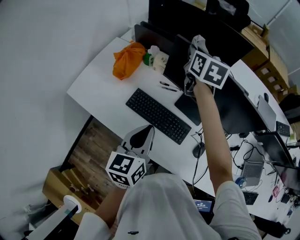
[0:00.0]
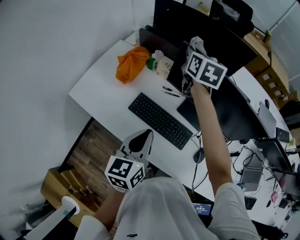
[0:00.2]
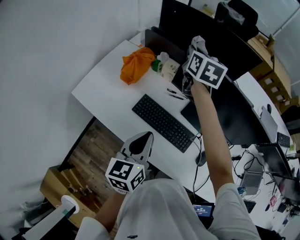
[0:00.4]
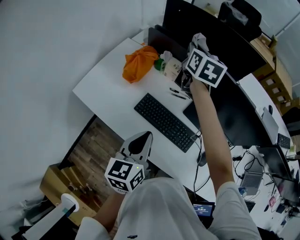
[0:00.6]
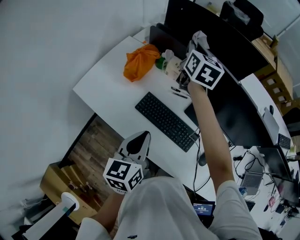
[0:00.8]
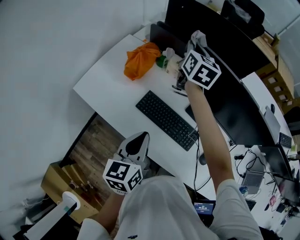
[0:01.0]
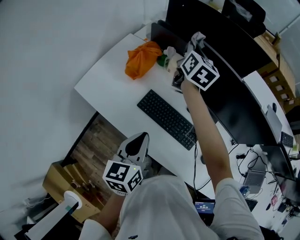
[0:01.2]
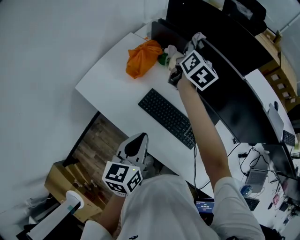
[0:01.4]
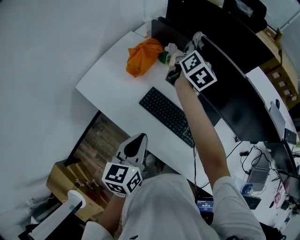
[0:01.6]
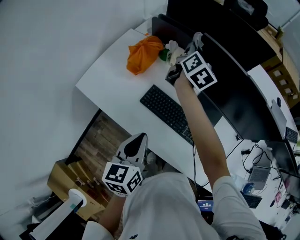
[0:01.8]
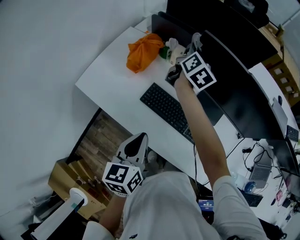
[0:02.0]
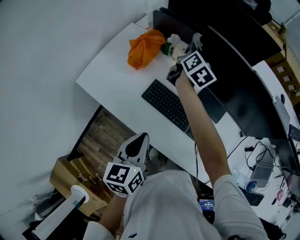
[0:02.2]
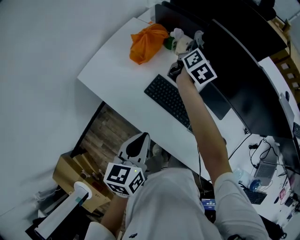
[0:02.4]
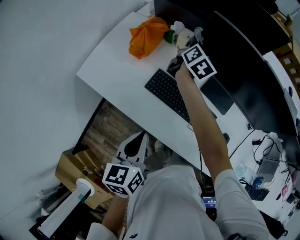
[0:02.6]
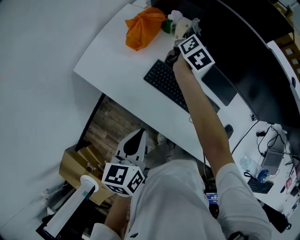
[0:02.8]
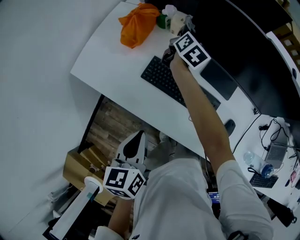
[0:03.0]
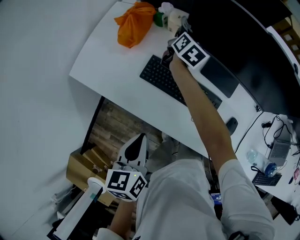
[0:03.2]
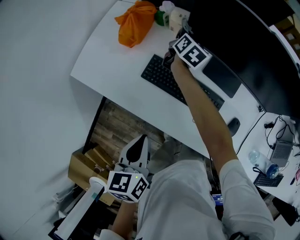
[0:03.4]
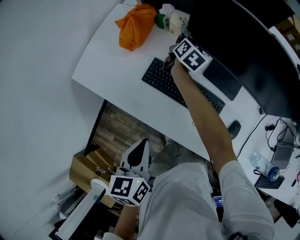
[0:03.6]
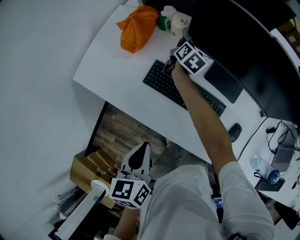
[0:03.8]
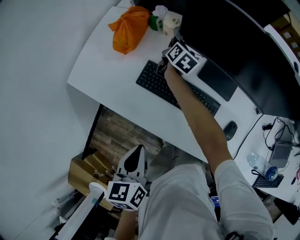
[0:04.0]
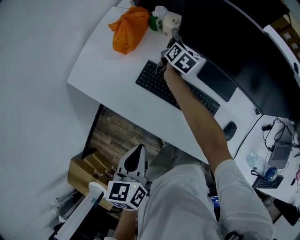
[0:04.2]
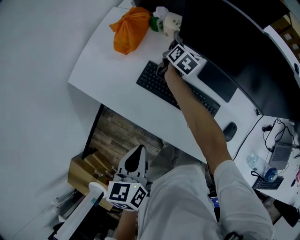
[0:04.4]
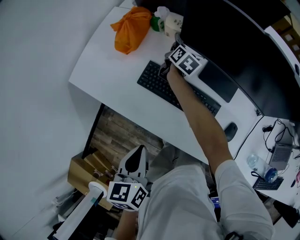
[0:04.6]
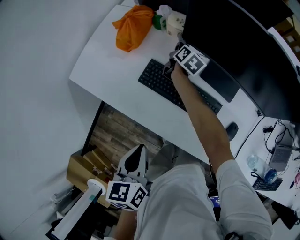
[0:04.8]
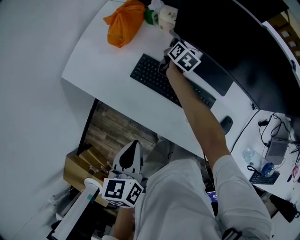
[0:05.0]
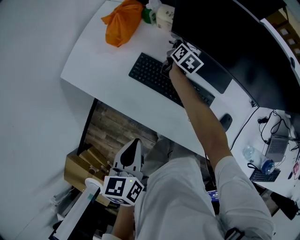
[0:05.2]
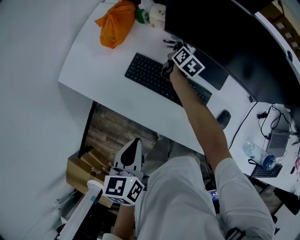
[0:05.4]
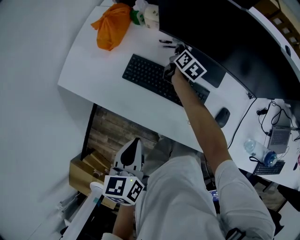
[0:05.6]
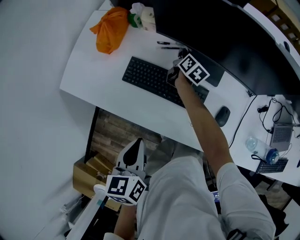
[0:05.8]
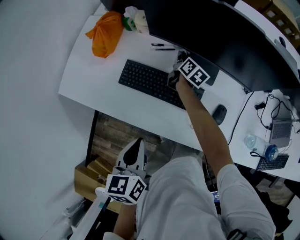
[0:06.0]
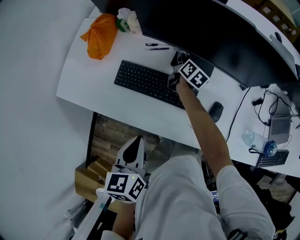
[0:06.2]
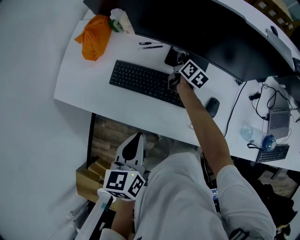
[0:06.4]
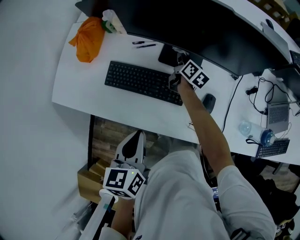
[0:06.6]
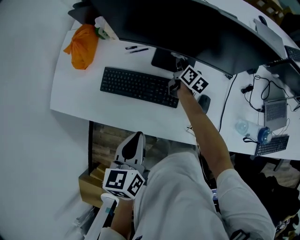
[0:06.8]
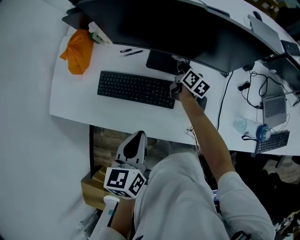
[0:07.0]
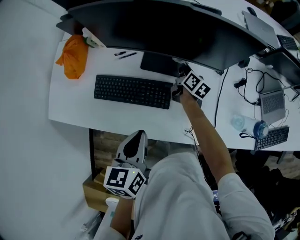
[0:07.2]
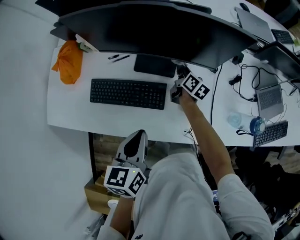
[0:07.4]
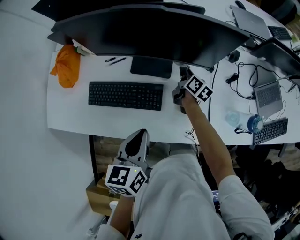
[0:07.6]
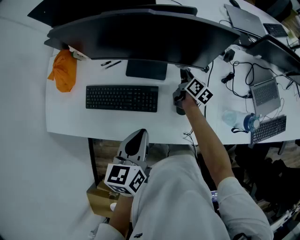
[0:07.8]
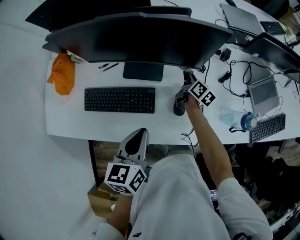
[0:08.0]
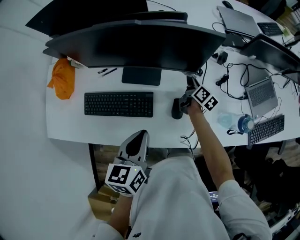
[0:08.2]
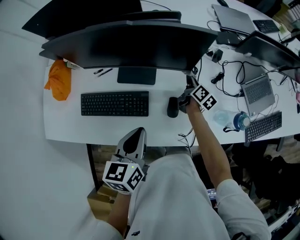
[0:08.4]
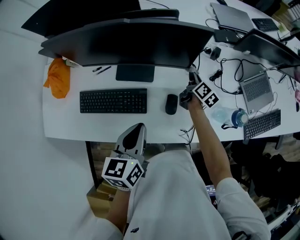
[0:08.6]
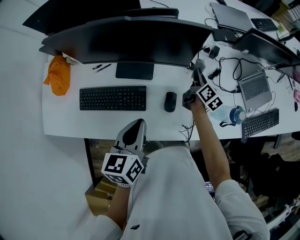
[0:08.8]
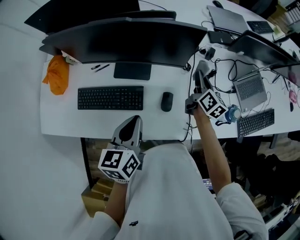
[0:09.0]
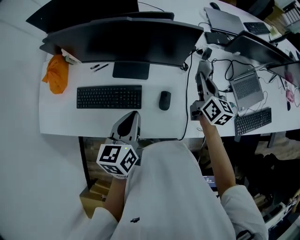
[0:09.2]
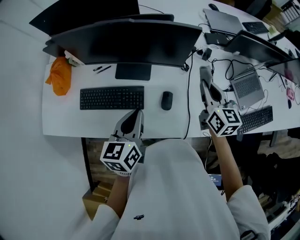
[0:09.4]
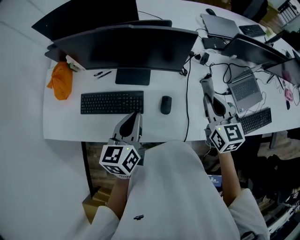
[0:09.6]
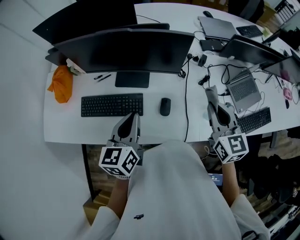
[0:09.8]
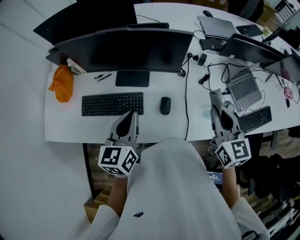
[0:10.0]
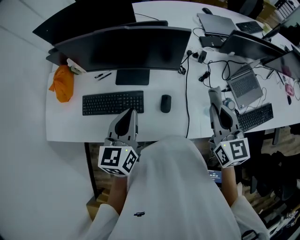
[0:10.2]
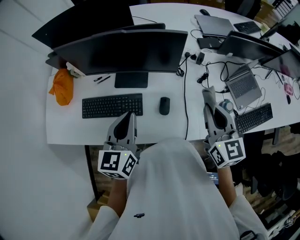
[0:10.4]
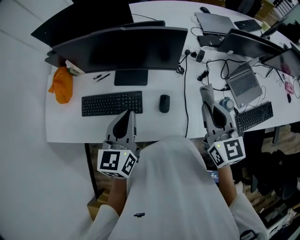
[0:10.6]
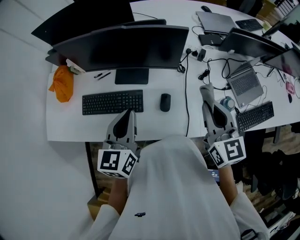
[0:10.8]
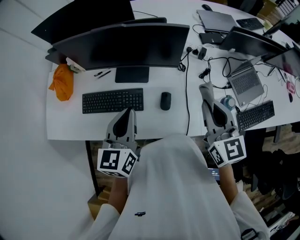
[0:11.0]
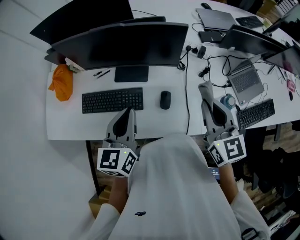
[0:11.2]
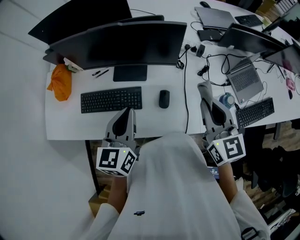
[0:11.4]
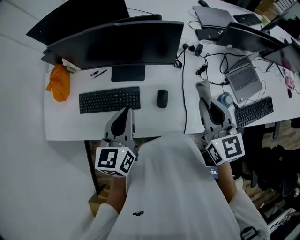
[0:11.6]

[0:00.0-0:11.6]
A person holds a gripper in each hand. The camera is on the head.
0:00.0 to 0:01.4: Both grippers travel together to the left, approximately 10 cm. The right gripper changes its angle by roughly 20 degrees.
0:01.4 to 0:02.8: The left gripper shifts by roughly 5 cm. Meanwhile the right gripper travels downward by roughly 15 cm.
0:02.8 to 0:04.4: The right gripper moves downward, approximately 15 cm.
0:04.4 to 0:05.8: The right gripper moves to the right and backward, some 15 cm.
0:05.8 to 0:07.2: The right gripper is displaced to the right by approximately 20 cm; the left gripper moves to the right and forward, some 15 cm.
0:07.2 to 0:08.8: The left gripper heads to the right, covering about 10 cm. Meanwhile the right gripper is displaced to the right by roughly 25 cm.
0:08.8 to 0:10.2: The left gripper goes roughly 5 cm upward. The right gripper is displaced upward and backward by roughly 30 cm, and rotates around the line of its fingers by approximately 50 degrees, counterclockwise from behind.
0:10.2 to 0:11.6: There are only small adjustments of the grippers.

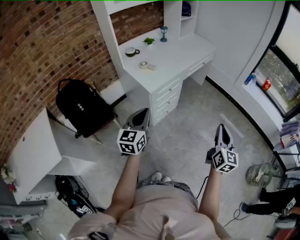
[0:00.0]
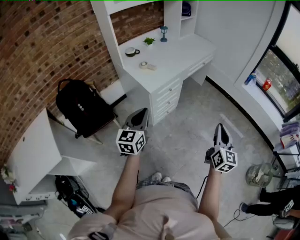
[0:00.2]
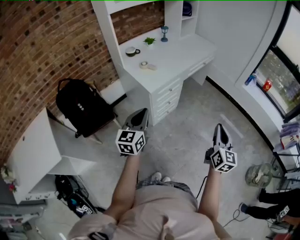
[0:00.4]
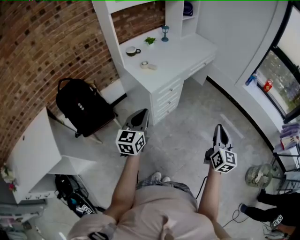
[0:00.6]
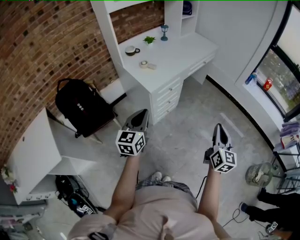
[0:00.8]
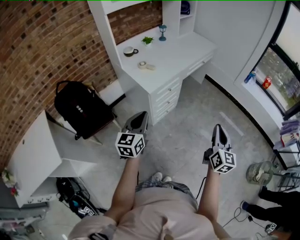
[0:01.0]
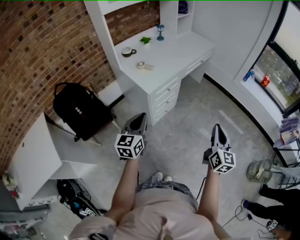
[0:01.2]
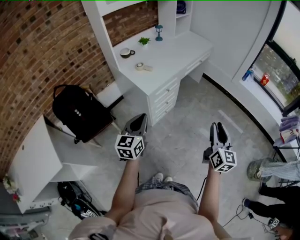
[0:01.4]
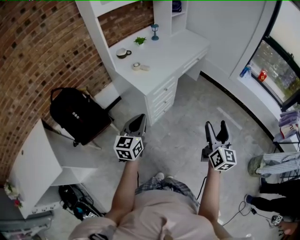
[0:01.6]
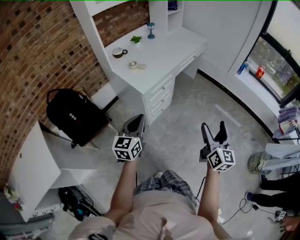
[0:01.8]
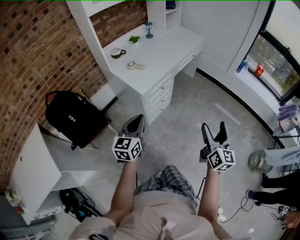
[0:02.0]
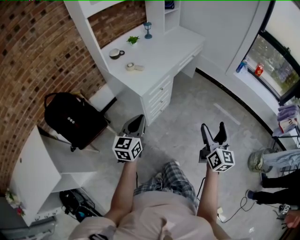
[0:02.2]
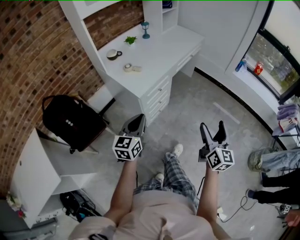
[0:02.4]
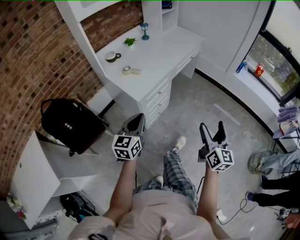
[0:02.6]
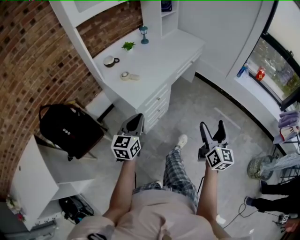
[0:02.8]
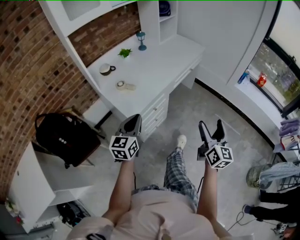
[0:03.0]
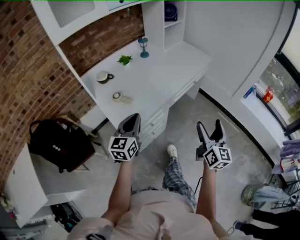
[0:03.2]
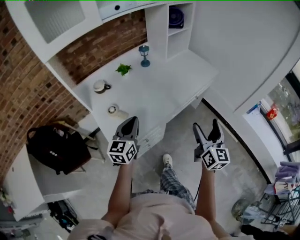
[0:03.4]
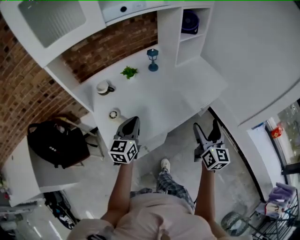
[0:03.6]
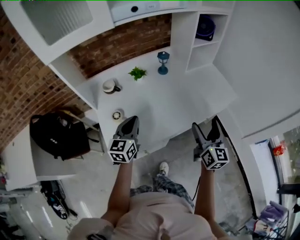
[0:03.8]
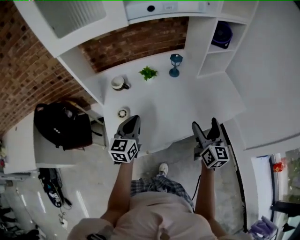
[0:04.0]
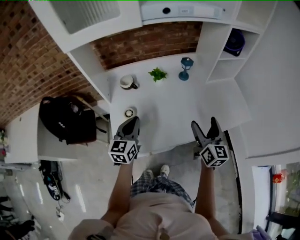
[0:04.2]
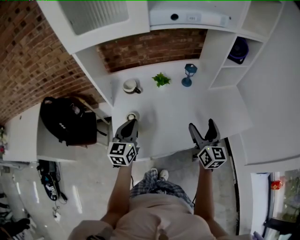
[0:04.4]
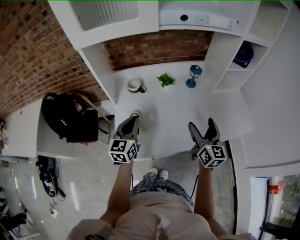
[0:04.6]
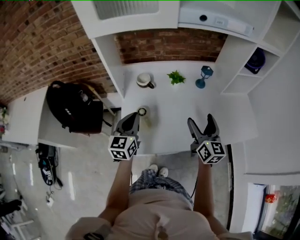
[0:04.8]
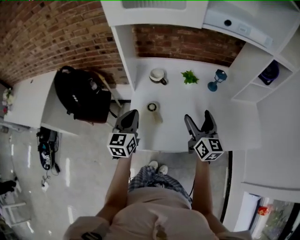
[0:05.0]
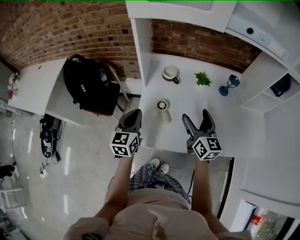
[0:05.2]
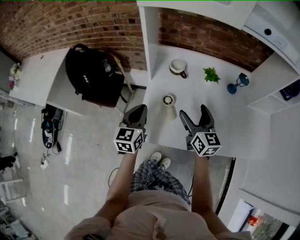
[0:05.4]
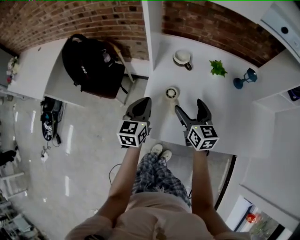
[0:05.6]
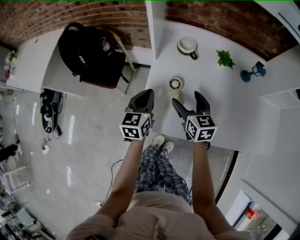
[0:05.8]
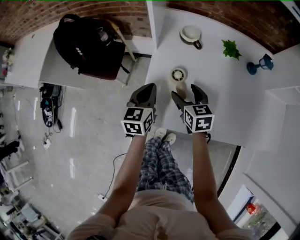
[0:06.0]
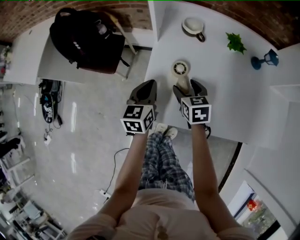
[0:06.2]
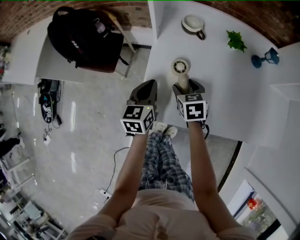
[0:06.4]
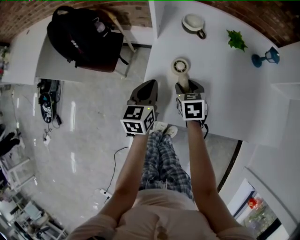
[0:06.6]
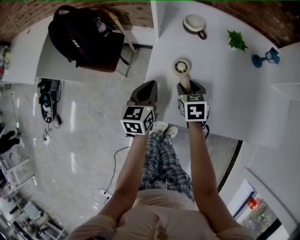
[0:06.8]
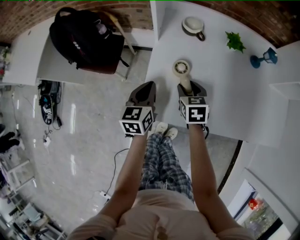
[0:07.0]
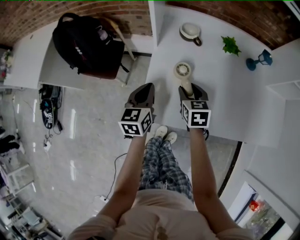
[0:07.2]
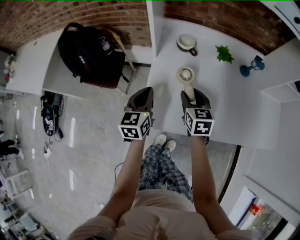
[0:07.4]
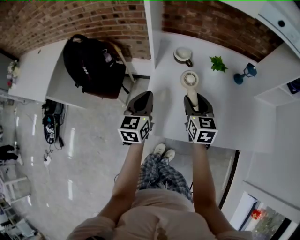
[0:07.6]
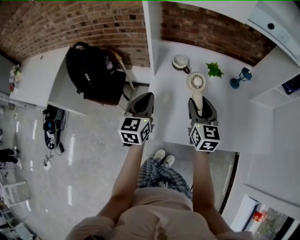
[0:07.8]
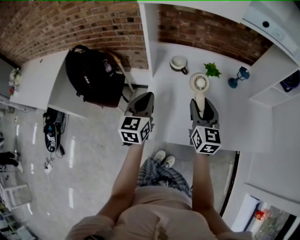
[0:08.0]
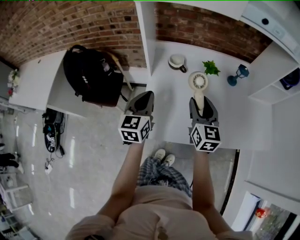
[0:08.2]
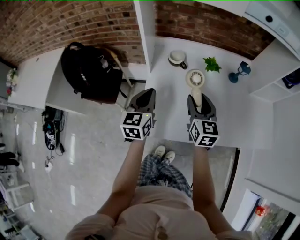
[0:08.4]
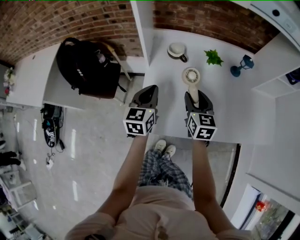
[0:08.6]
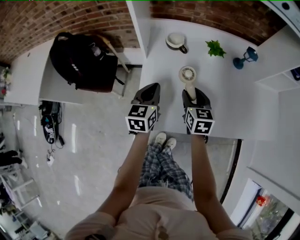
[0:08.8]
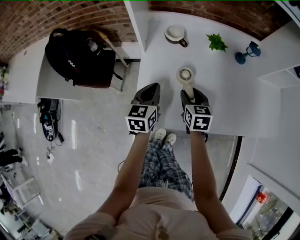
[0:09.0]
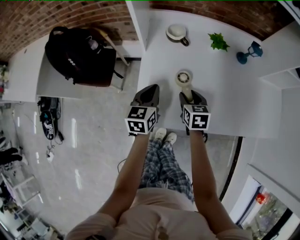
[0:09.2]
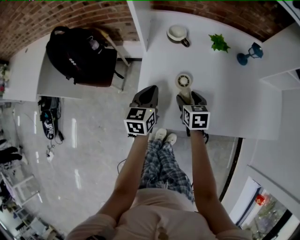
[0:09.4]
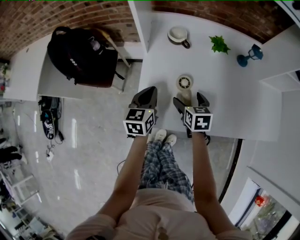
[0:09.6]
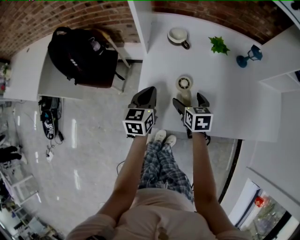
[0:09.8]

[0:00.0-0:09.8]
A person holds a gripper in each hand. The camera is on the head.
0:00.0 to 0:01.4: The grippers move only a little.
0:01.4 to 0:02.8: Both grippers travel together forward, some 15 cm. The right gripper opens its fingers.
0:02.8 to 0:04.2: The pair of grippers is taken roughly 50 cm. The left gripper swivels about 40 degrees, while the right gripper turns by some 40 degrees.
0:04.2 to 0:05.6: The right gripper changes place by roughly 35 cm, and swivels about 40 degrees; the left gripper shifts by roughly 20 cm, and rotates approximately 20 degrees.
0:05.6 to 0:07.0: The left gripper shifts about 10 cm downward, while the right gripper shifts about 15 cm downward, rotates about 30 degrees, and closes its fingers.
0:07.0 to 0:08.4: Both grippers move upward, some 15 cm. The right gripper turns by roughly 30 degrees.
0:08.4 to 0:09.8: Both grippers travel together downward, roughly 15 cm. The right gripper swivels about 30 degrees, and opens up.

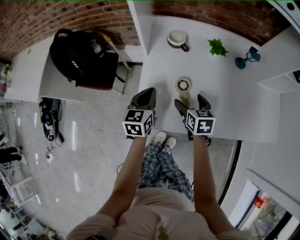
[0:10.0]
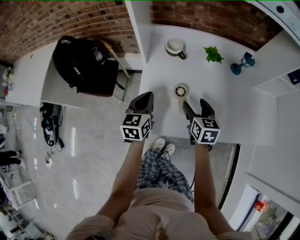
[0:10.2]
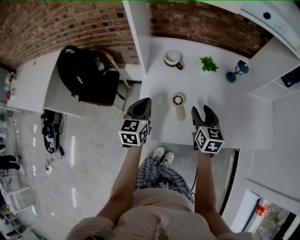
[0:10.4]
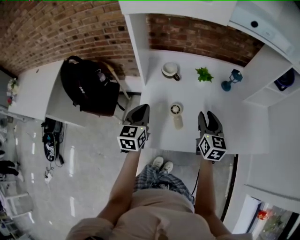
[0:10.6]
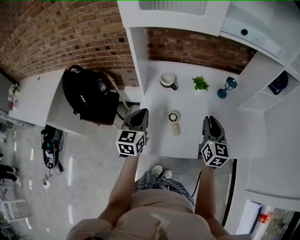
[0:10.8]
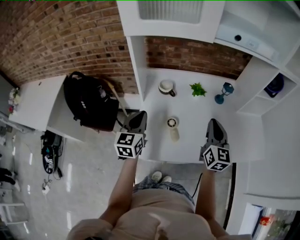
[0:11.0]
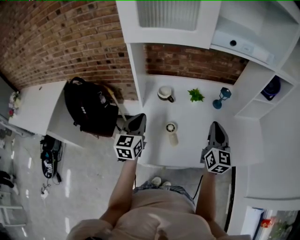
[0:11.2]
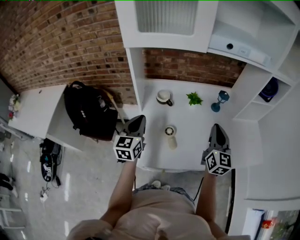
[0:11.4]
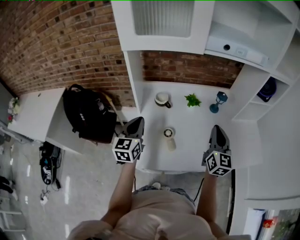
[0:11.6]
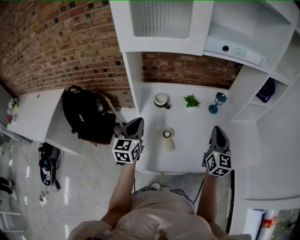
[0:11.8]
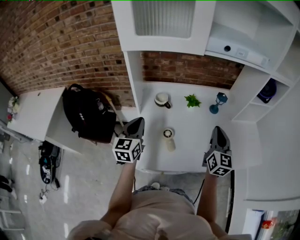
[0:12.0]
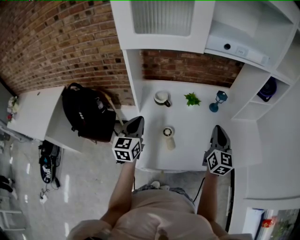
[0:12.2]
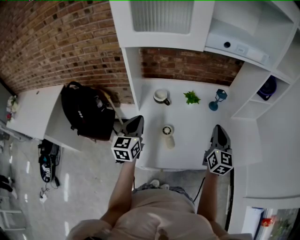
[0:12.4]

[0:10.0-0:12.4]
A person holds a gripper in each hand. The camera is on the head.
0:10.0 to 0:11.2: The right gripper goes some 30 cm upward and to the right, tips its fingers upward by approximately 40 degrees, and closes, while the left gripper travels upward by some 15 cm.
0:11.2 to 0:12.4: The grippers stay close to where they were, moving slightly.
